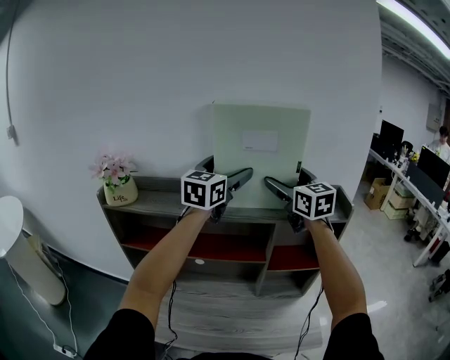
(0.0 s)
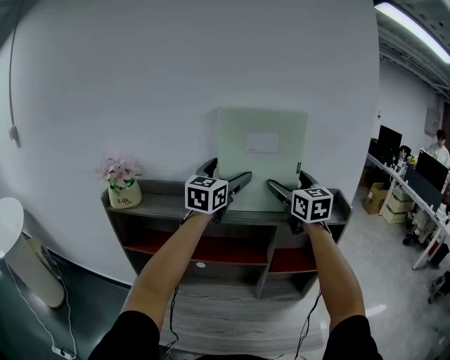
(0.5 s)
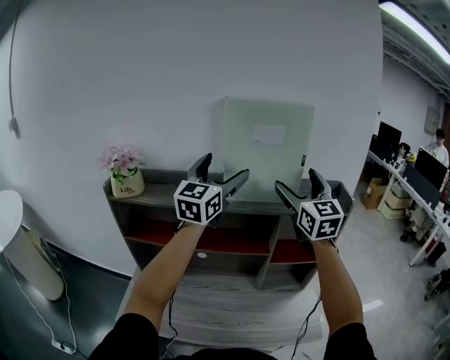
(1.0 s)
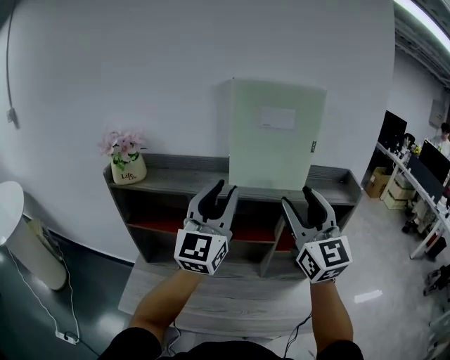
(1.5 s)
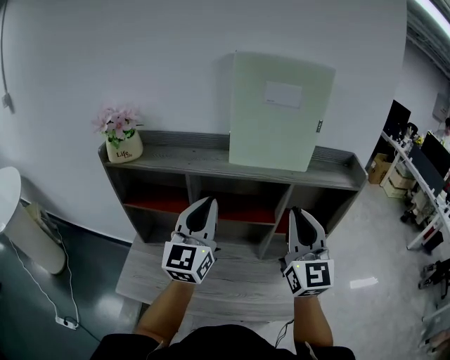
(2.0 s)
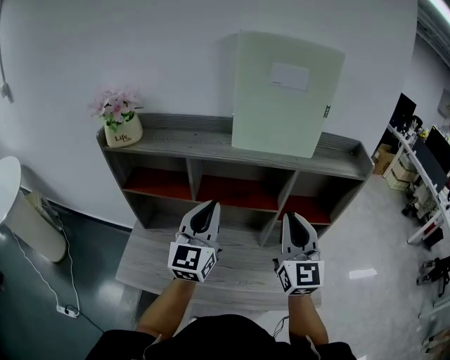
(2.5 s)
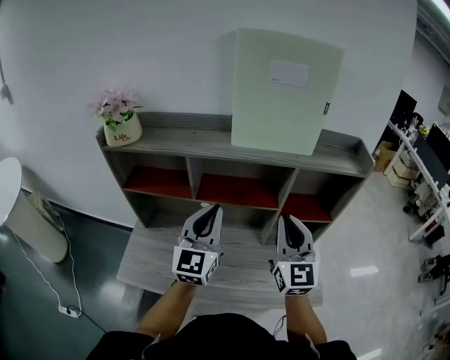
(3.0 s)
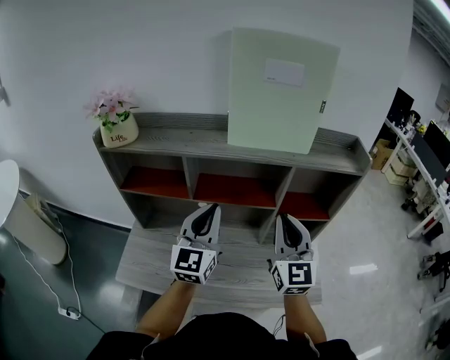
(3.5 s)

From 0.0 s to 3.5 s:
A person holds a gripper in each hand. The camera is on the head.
From 0.0 s to 2.0 s: The right gripper shifts approximately 20 cm backward and downward, turns by some 20 degrees, and closes up. Meanwhile the left gripper shifts approximately 25 cm backward, downward and to the left, and closes up.
From 2.0 s to 3.5 s: The two grippers go roughly 10 cm downward.

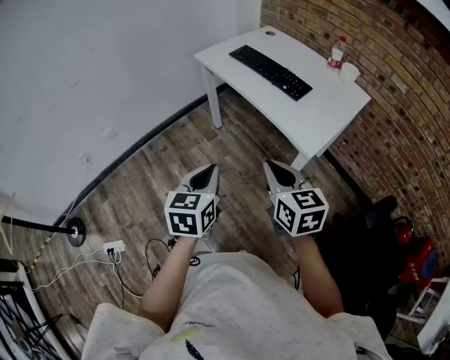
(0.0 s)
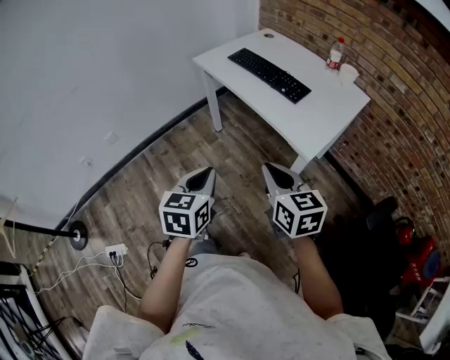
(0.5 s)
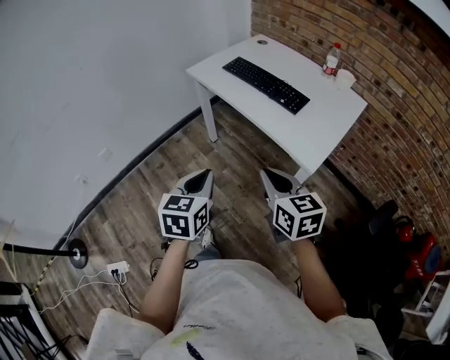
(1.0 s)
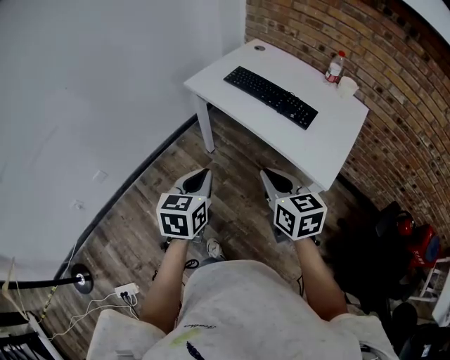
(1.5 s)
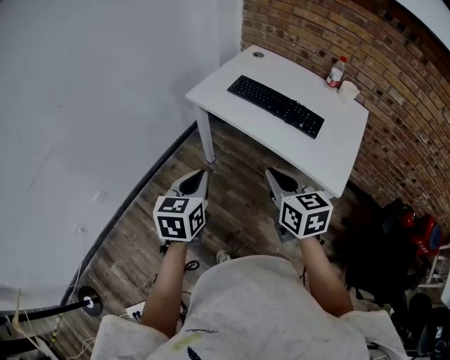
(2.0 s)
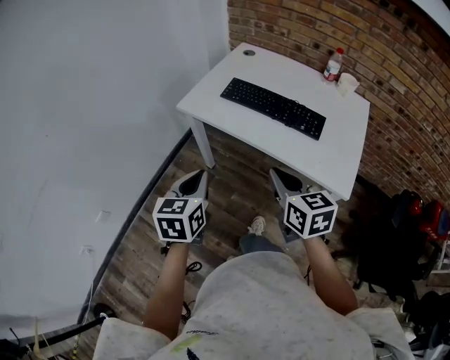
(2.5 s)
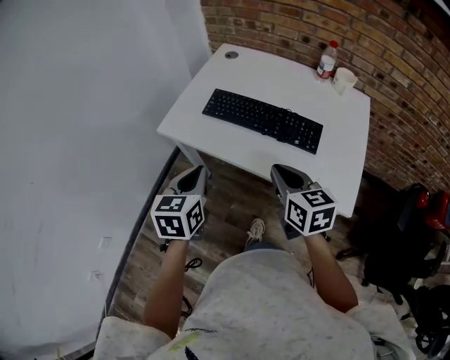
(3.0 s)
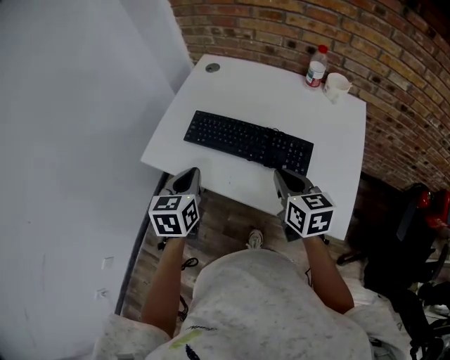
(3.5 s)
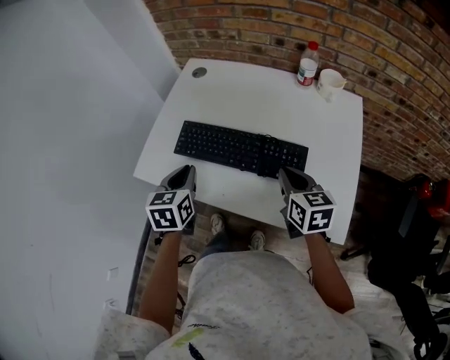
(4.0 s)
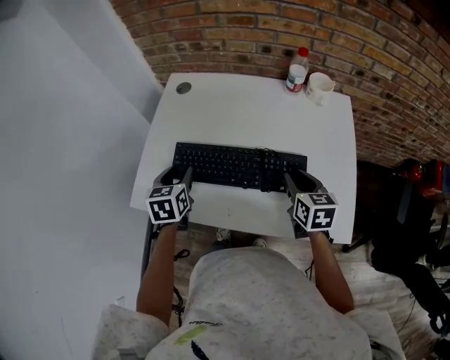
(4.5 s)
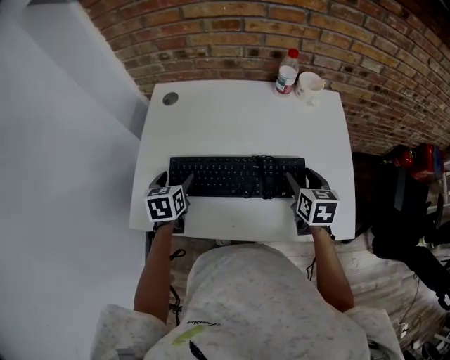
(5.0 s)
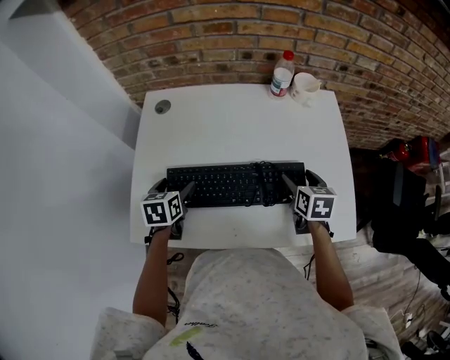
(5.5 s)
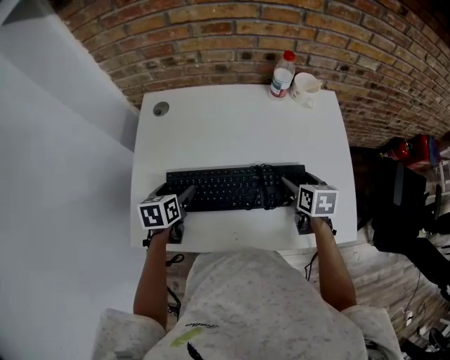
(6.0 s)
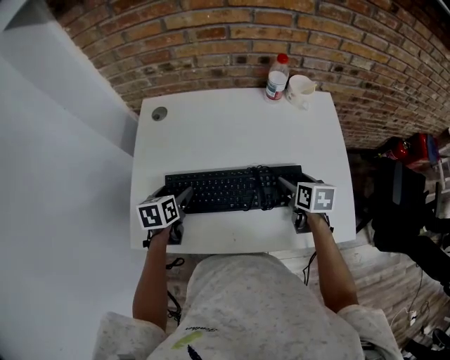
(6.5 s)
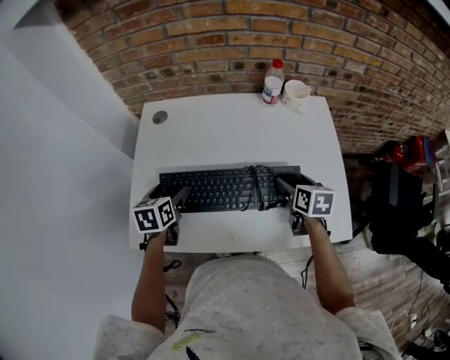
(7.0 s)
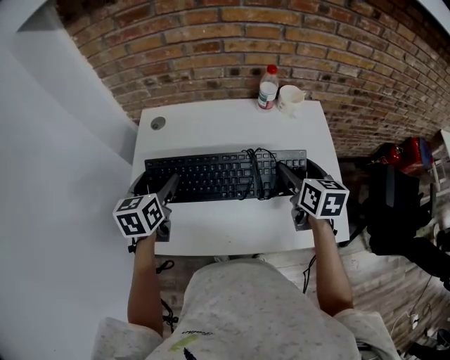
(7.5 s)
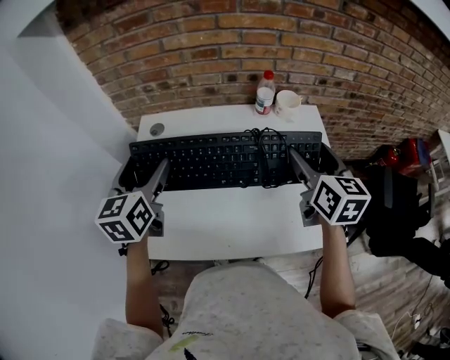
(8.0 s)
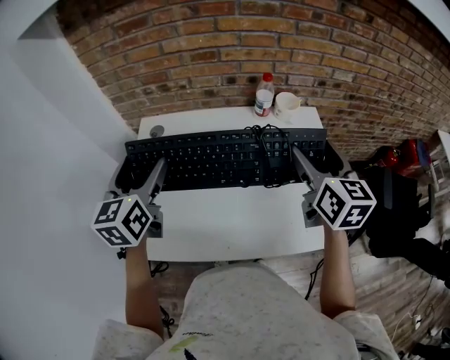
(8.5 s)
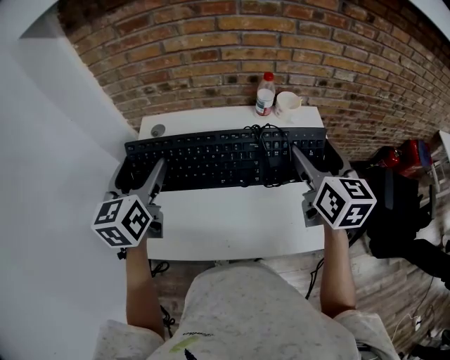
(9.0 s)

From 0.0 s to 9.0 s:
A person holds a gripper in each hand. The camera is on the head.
From 0.0 s to 2.0 s: Both grippers move forward and to the left, roughly 30 cm.
From 2.0 s to 4.5 s: The two grippers travel together, forward, about 50 cm. The left gripper turns by some 20 degrees, and opens; the right gripper turns by about 40 degrees.
From 4.5 s to 7.0 s: The right gripper shifts by about 5 cm, and opens, while the left gripper is displaced forward by approximately 5 cm, and opens its fingers.
From 7.0 s to 9.0 s: Both grippers move upward, some 25 cm. The right gripper turns by about 30 degrees. Meanwhile the left gripper tilts its fingers some 30 degrees upward.

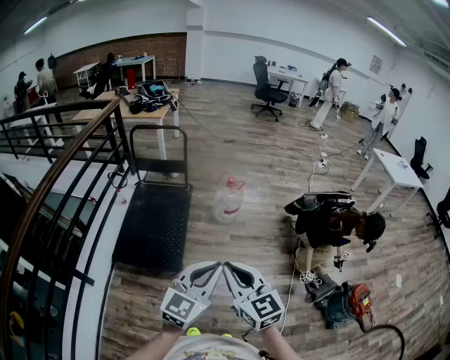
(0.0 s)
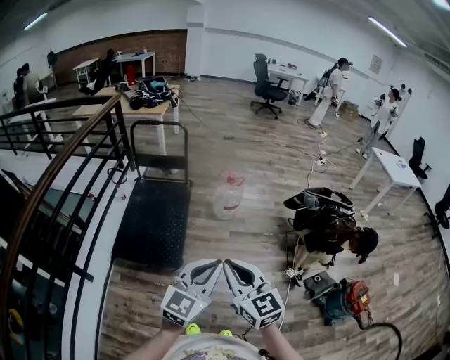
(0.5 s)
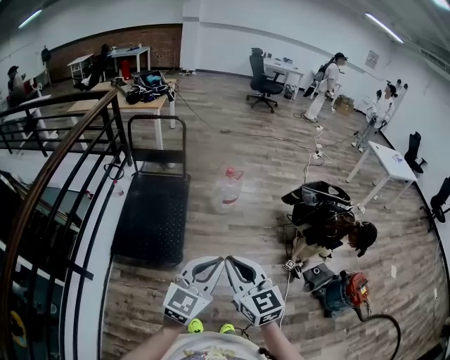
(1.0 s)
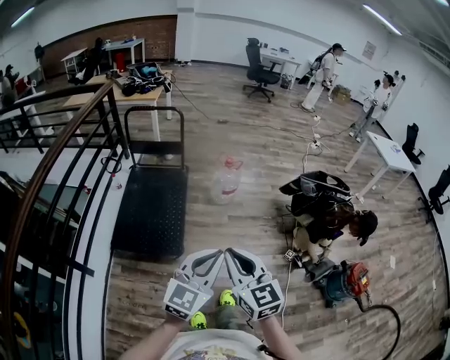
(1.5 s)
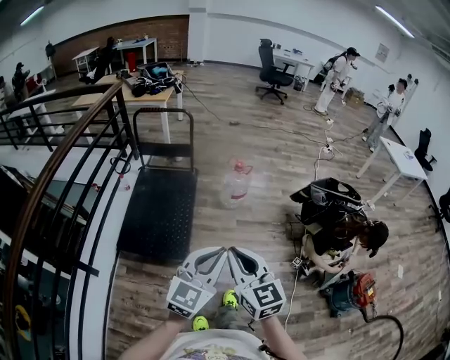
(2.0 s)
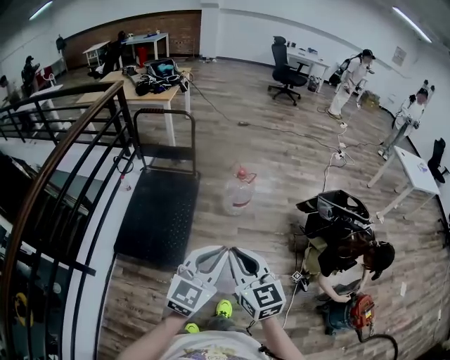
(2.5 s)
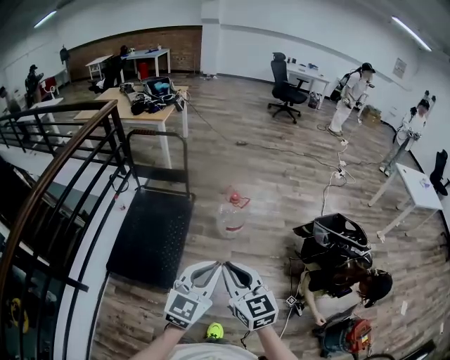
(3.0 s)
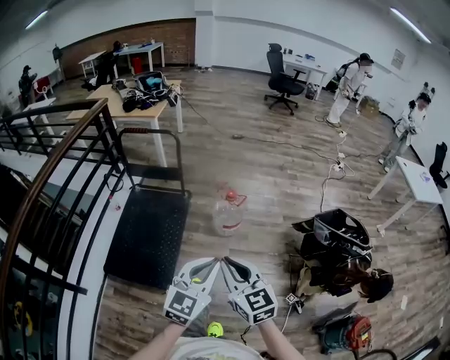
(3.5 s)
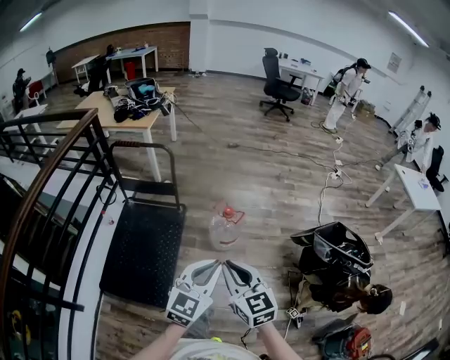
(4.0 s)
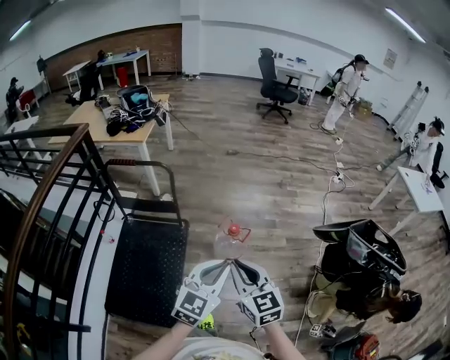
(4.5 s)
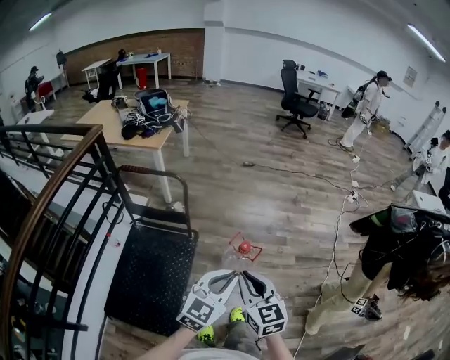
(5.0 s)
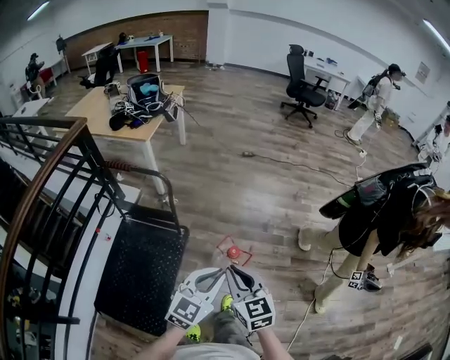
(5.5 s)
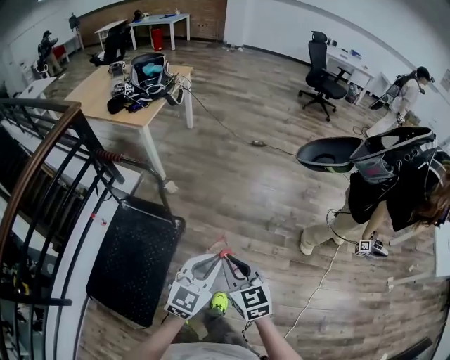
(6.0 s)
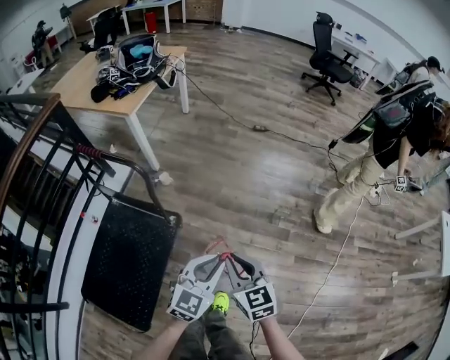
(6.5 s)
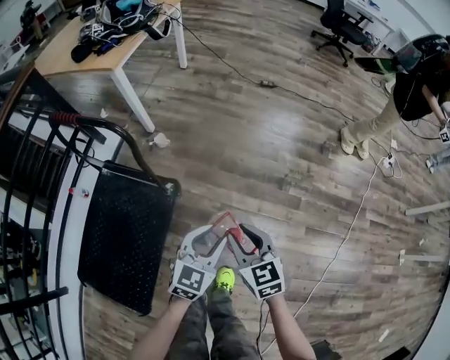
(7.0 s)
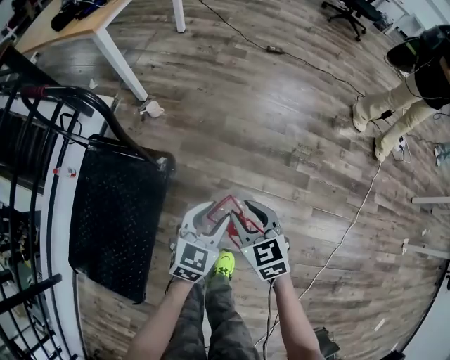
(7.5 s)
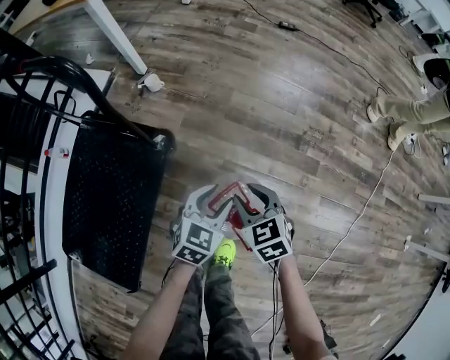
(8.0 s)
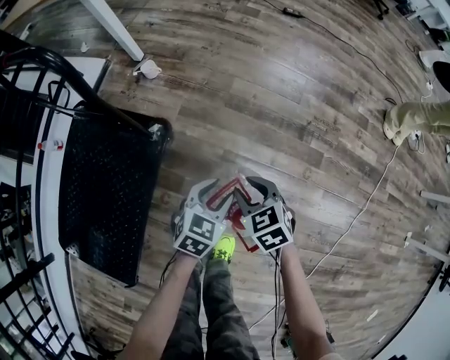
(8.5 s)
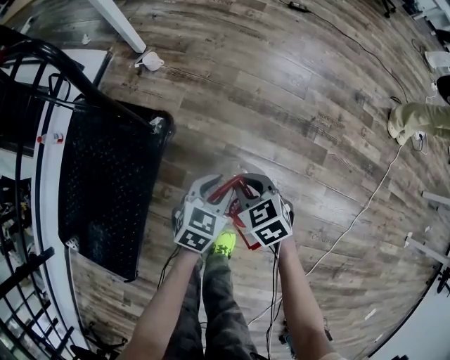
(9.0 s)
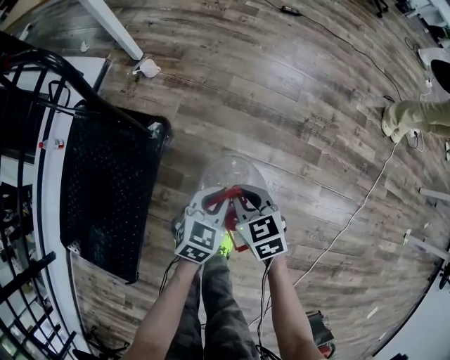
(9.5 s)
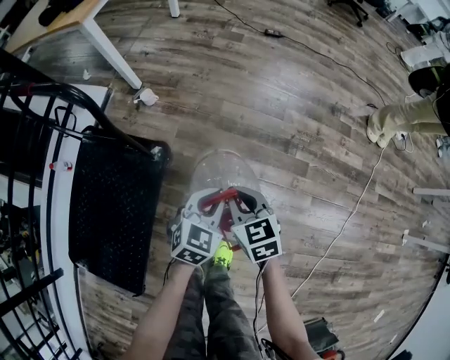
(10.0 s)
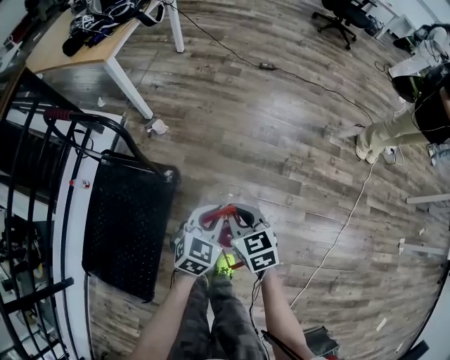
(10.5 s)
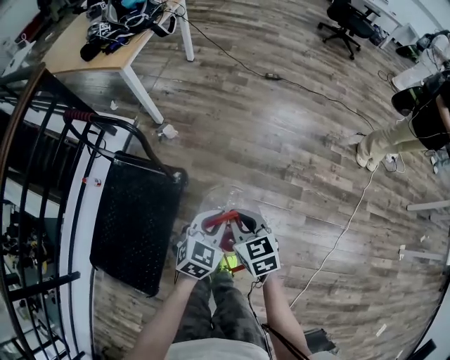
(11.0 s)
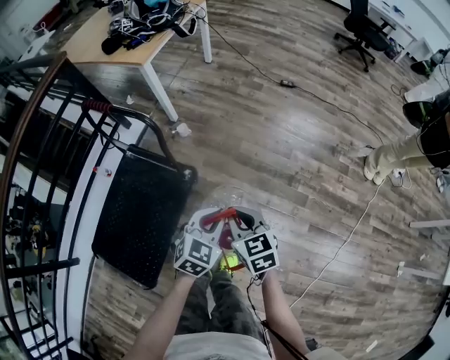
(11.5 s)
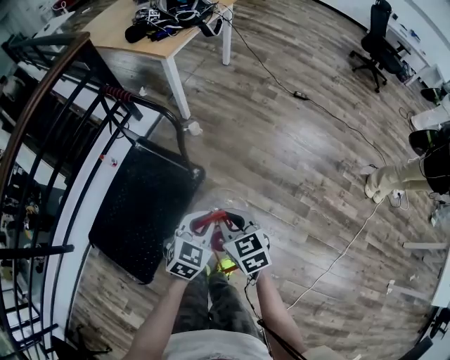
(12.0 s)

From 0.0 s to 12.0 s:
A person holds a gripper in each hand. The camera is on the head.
From 0.0 s to 2.0 s: The right gripper changes place by some 5 cm. Meanwhile the left gripper moves about 5 cm.
From 2.0 s to 4.0 s: The two grippers travel together, forward, roughly 40 cm.
From 4.0 s to 6.0 s: The two grippers travel together, forward, approximately 50 cm.
From 6.0 s to 8.0 s: The grippers both shift downward by approximately 50 cm. The right gripper swivels roughly 30 degrees, and opens up; the left gripper changes its angle by roughly 30 degrees, and opens up.
From 8.0 s to 10.0 s: The grippers both shift upward by some 10 cm. The left gripper closes; the right gripper closes its fingers.
From 10.0 s to 12.0 s: Both grippers travel together upward and to the left, about 25 cm.

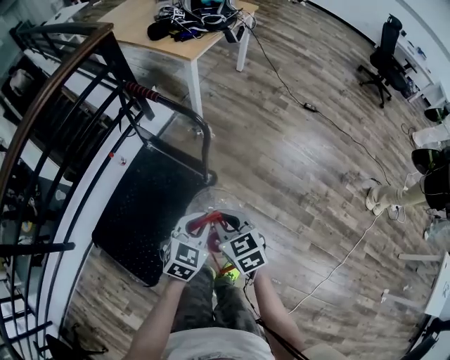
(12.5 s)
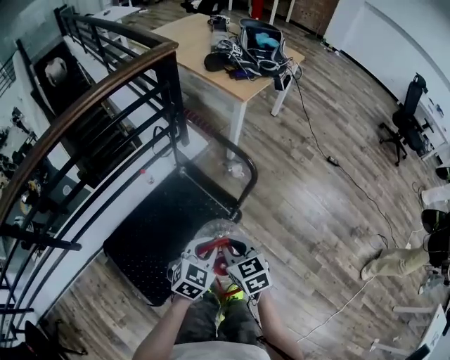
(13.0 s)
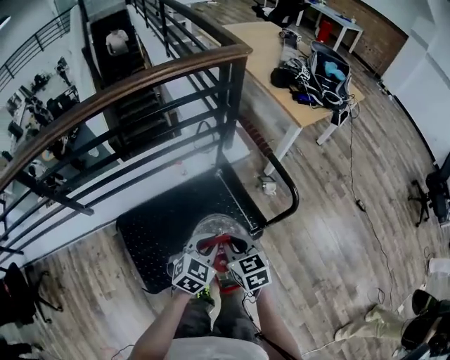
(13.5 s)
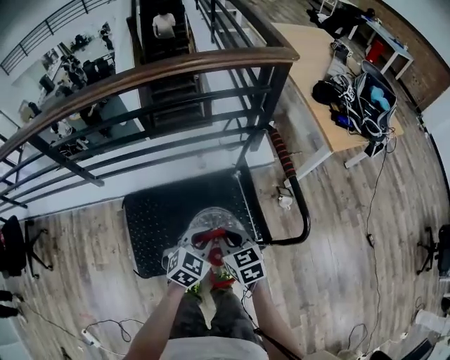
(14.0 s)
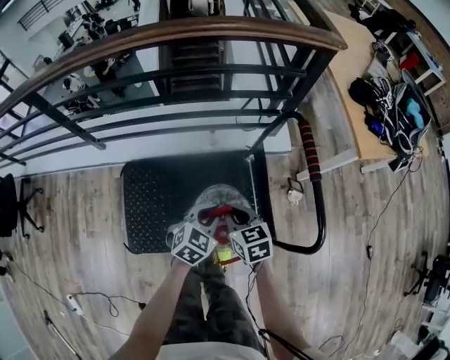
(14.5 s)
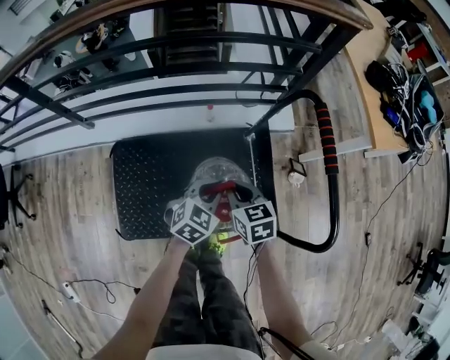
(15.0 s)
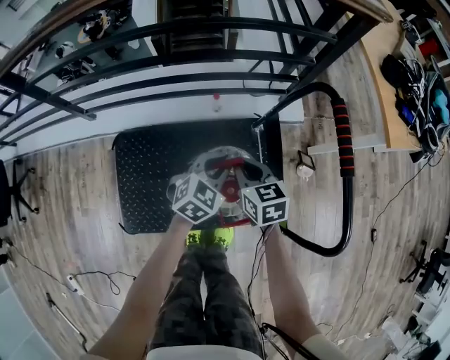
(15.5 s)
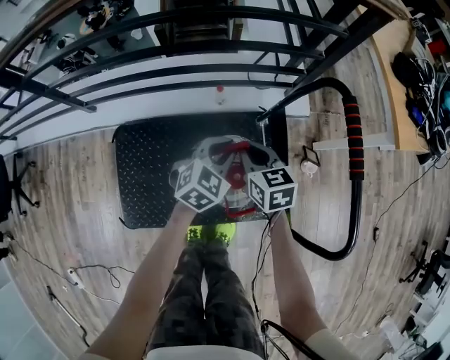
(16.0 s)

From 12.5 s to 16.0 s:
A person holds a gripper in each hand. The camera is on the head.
From 12.5 s to 14.5 s: The left gripper changes place by approximately 40 cm, and turns by some 40 degrees; the right gripper ends up roughly 40 cm from where it was, and changes its angle by approximately 40 degrees.
From 14.5 s to 16.0 s: The grippers both shift forward and downward by approximately 20 cm.
